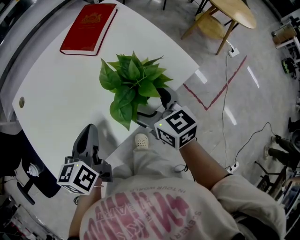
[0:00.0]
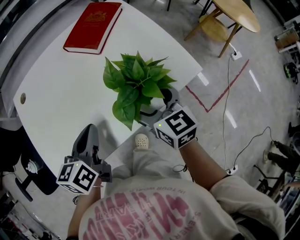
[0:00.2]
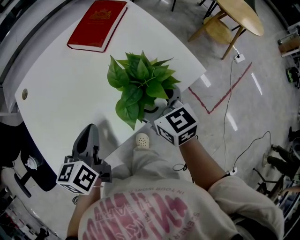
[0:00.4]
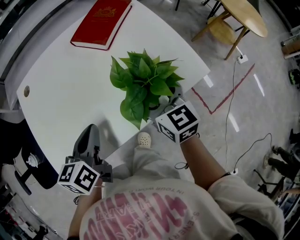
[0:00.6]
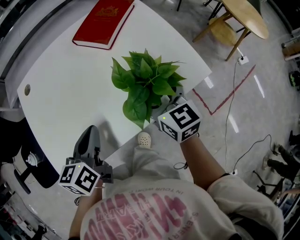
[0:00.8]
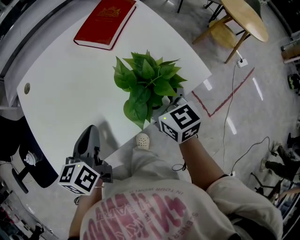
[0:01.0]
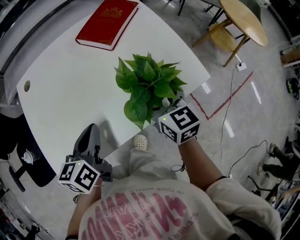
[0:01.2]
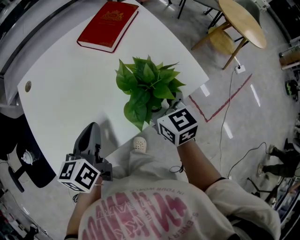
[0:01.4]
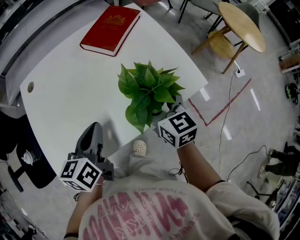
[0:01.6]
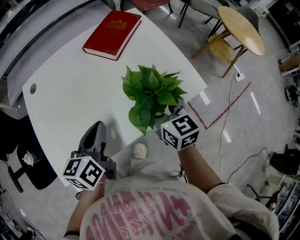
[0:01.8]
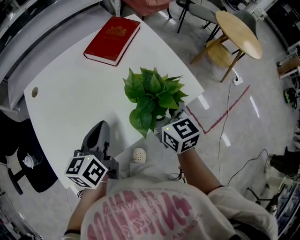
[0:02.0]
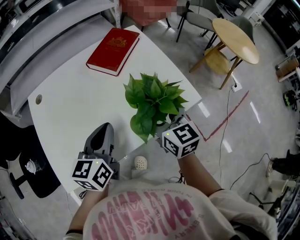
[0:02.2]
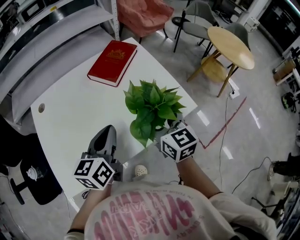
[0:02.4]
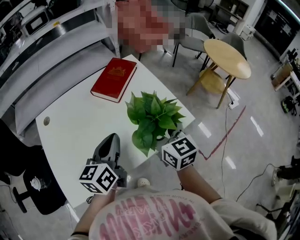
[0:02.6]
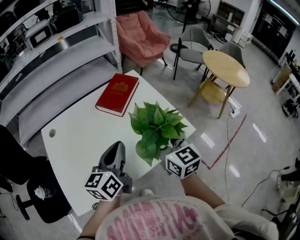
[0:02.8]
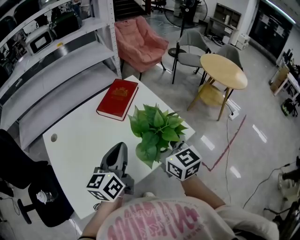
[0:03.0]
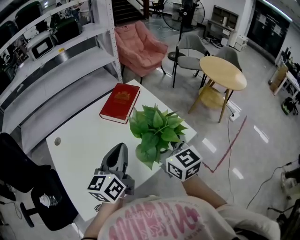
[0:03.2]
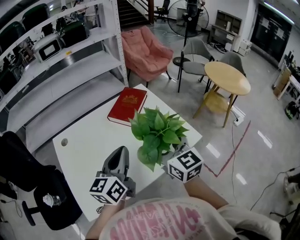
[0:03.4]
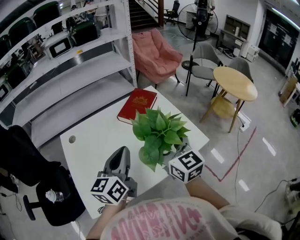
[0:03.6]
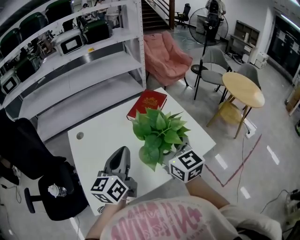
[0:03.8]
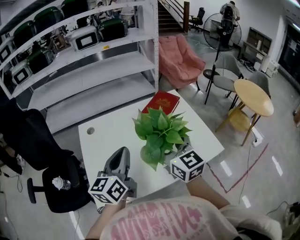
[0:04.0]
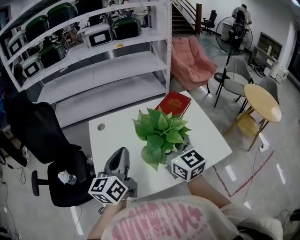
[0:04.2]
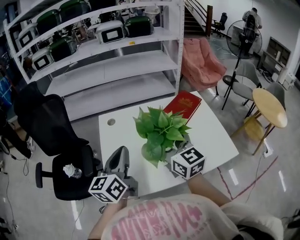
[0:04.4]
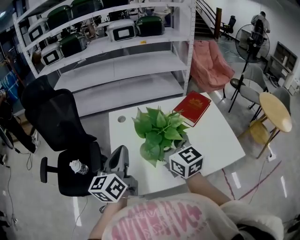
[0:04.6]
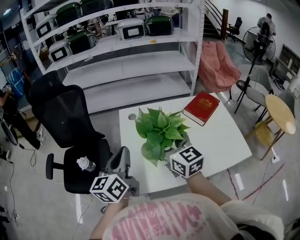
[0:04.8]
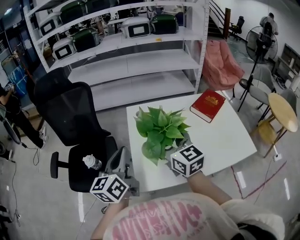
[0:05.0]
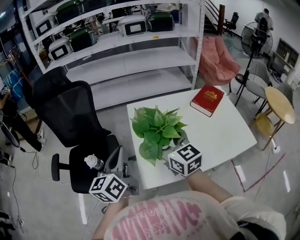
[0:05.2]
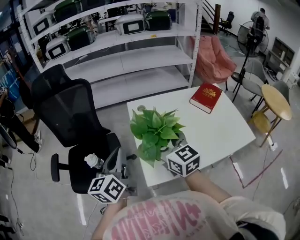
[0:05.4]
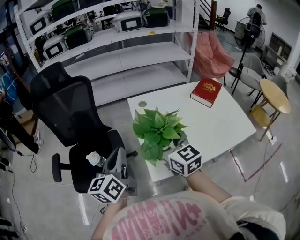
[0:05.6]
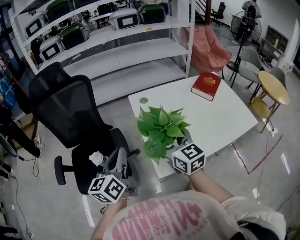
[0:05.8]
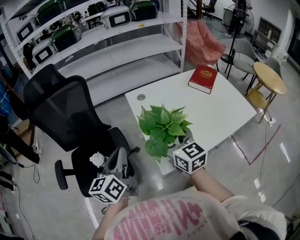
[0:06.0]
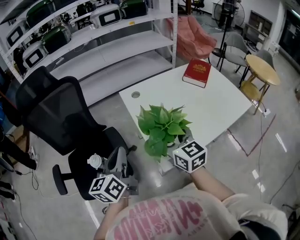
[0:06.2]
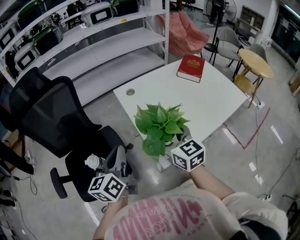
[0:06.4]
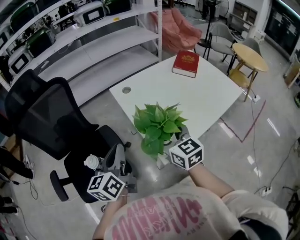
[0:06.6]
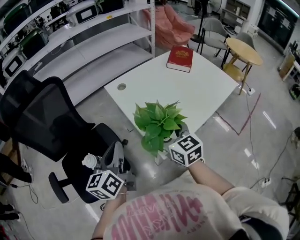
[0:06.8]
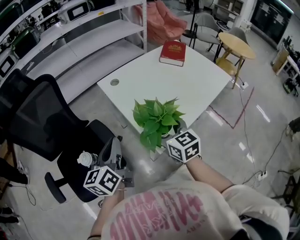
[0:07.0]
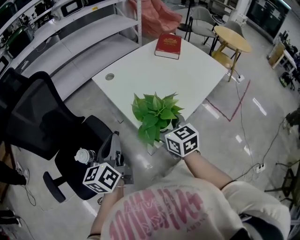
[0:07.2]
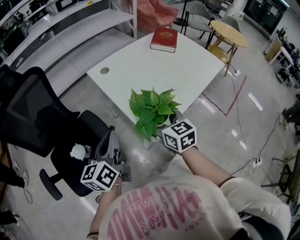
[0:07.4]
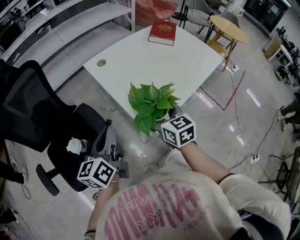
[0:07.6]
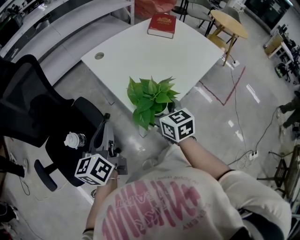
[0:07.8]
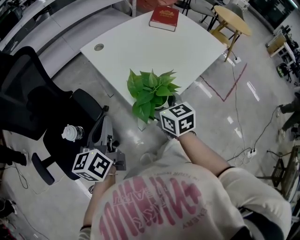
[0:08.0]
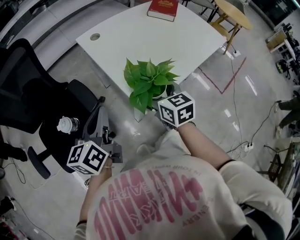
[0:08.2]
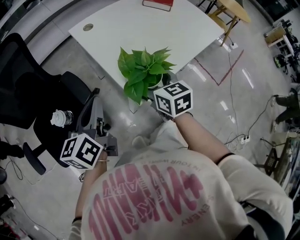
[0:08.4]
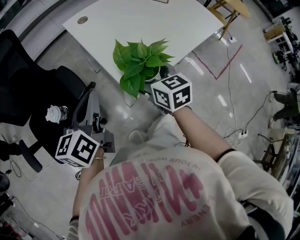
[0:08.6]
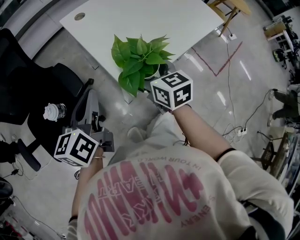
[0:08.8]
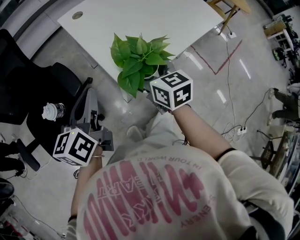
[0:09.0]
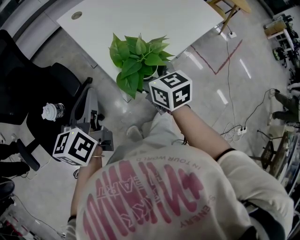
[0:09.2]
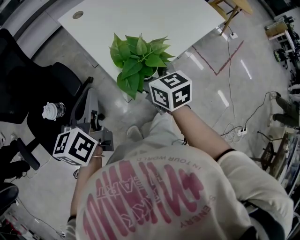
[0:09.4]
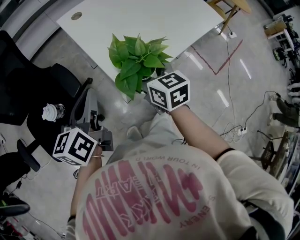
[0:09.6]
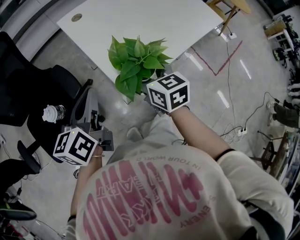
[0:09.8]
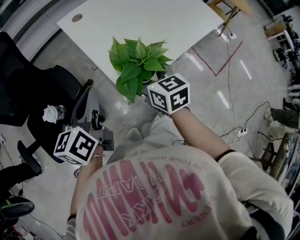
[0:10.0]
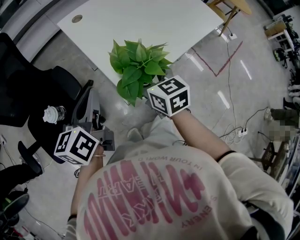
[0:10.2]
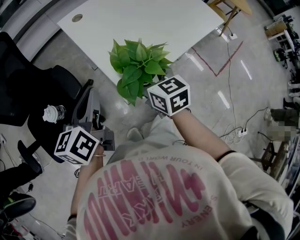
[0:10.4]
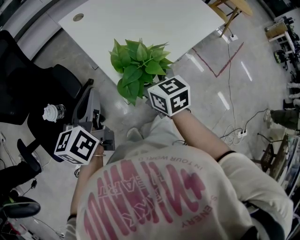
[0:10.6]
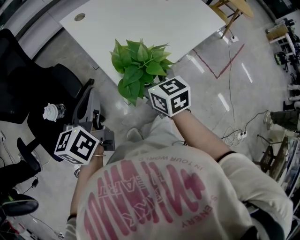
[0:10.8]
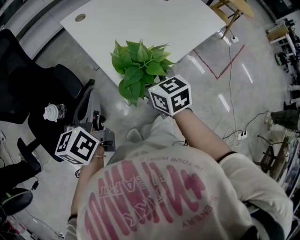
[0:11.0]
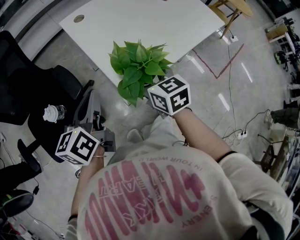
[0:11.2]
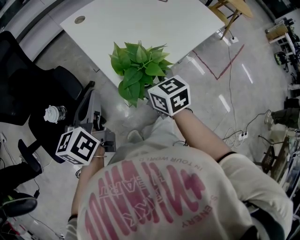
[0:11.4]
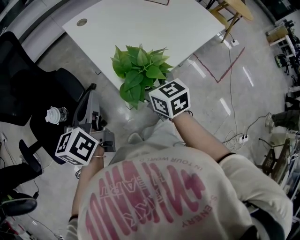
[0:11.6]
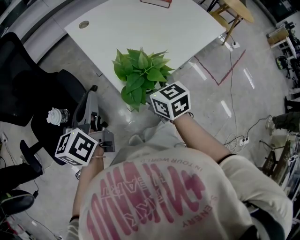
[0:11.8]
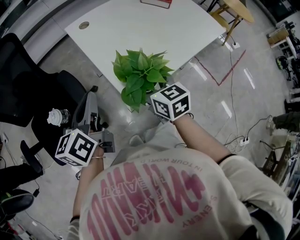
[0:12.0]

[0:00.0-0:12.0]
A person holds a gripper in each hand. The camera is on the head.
0:00.0 to 0:01.6: The grippers move only a little.
0:01.6 to 0:03.0: The right gripper heads upward, covering approximately 10 cm; the left gripper is displaced upward and to the right by roughly 10 cm, and rotates about 20 degrees.
0:03.0 to 0:04.4: The left gripper changes place by approximately 25 cm, and turns by about 30 degrees, while the right gripper ends up approximately 25 cm from where it was, and swivels roughly 20 degrees.
0:04.4 to 0:06.0: The two grippers go some 30 cm to the left.
0:06.0 to 0:07.6: The left gripper is displaced downward by some 5 cm, and turns by approximately 20 degrees; the right gripper heads downward and backward, covering roughly 10 cm, and rotates some 20 degrees.
0:07.6 to 0:12.0: The grippers stay close to where they were, moving slightly.

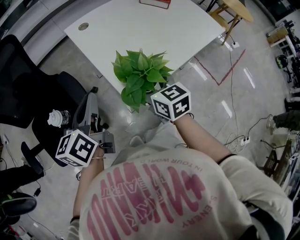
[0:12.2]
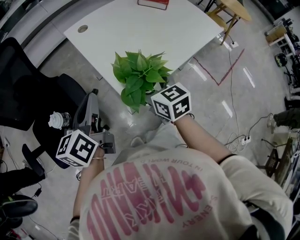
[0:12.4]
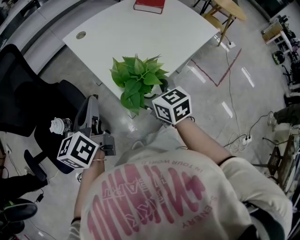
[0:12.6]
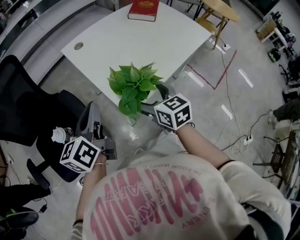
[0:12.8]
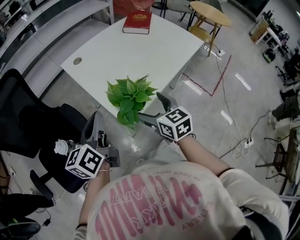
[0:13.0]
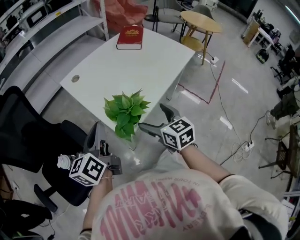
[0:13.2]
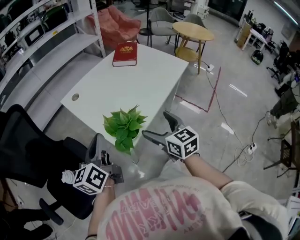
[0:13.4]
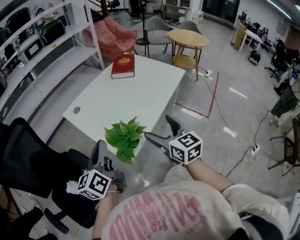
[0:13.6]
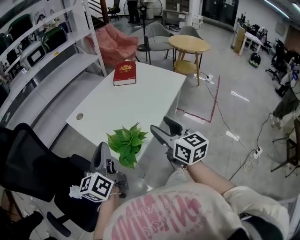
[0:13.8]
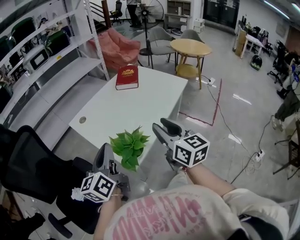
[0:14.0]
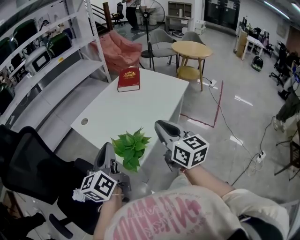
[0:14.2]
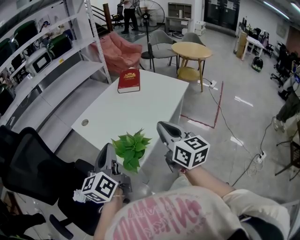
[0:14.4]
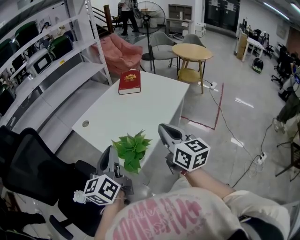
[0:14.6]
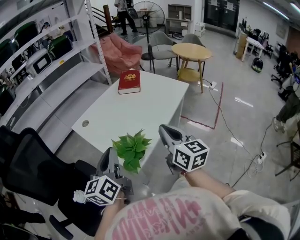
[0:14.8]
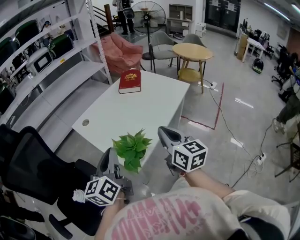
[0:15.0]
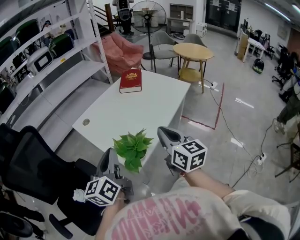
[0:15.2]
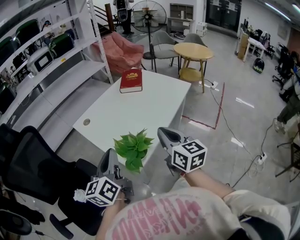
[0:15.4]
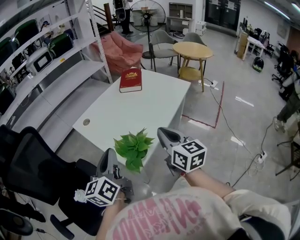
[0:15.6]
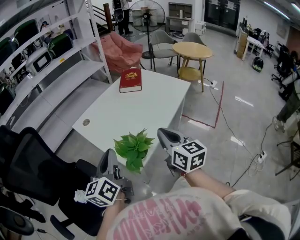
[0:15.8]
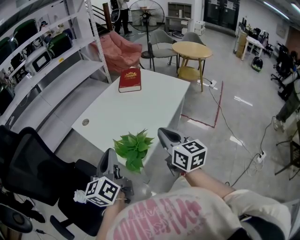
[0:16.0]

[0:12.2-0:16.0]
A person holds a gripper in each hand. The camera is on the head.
0:12.2 to 0:13.4: The left gripper goes some 10 cm to the right and upward. Meanwhile the right gripper travels to the right and upward by roughly 15 cm.
0:13.4 to 0:14.8: The right gripper is displaced upward by some 10 cm, swivels approximately 20 degrees, and closes its fingers. Meanwhile the left gripper shifts some 5 cm upward.
0:14.8 to 0:16.0: The grippers stay close to where they were, moving slightly.

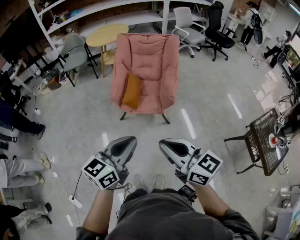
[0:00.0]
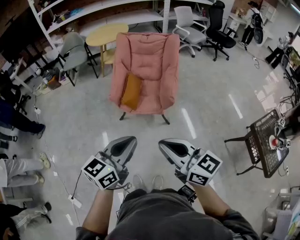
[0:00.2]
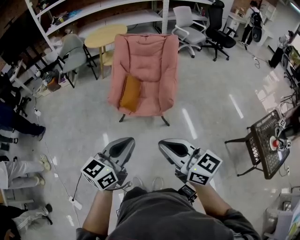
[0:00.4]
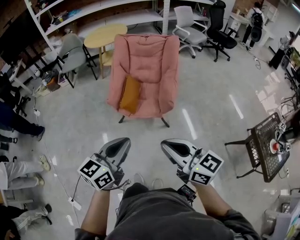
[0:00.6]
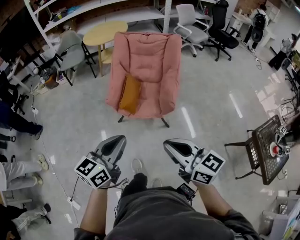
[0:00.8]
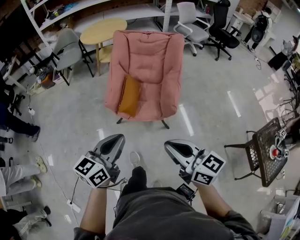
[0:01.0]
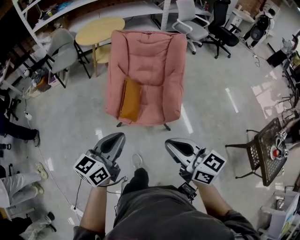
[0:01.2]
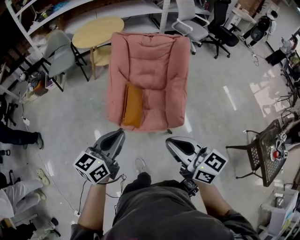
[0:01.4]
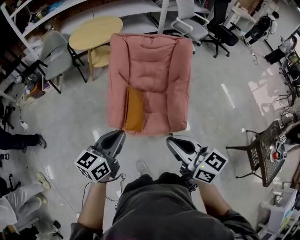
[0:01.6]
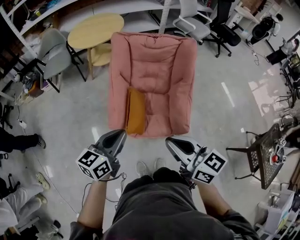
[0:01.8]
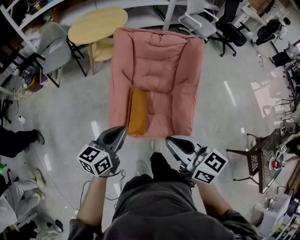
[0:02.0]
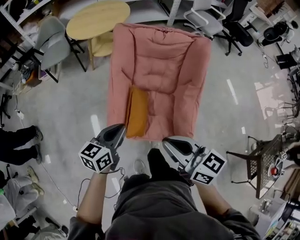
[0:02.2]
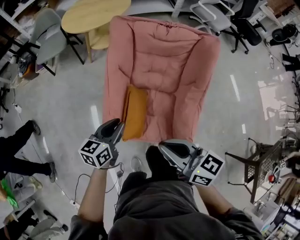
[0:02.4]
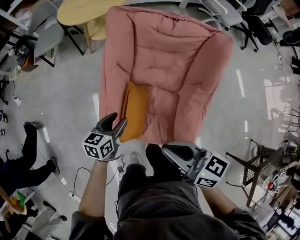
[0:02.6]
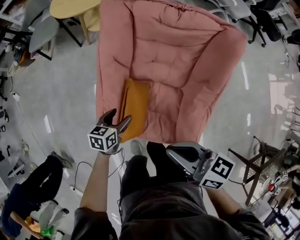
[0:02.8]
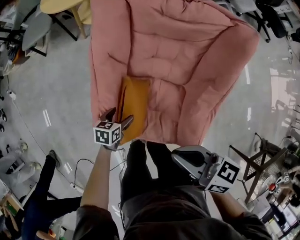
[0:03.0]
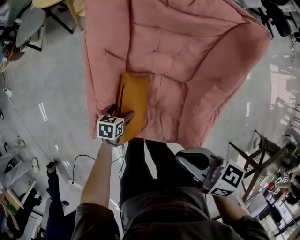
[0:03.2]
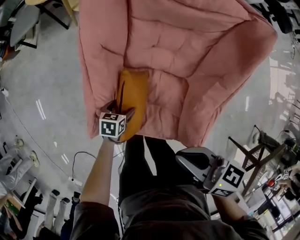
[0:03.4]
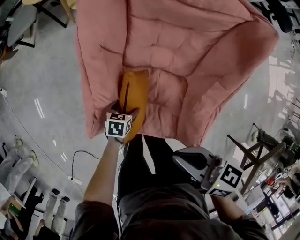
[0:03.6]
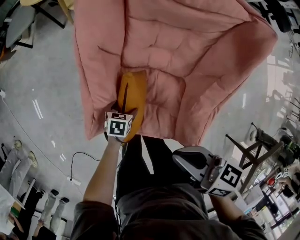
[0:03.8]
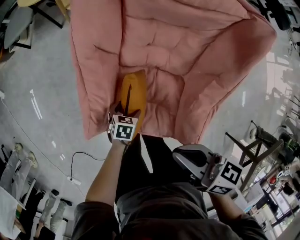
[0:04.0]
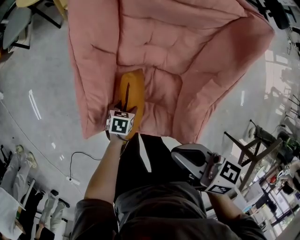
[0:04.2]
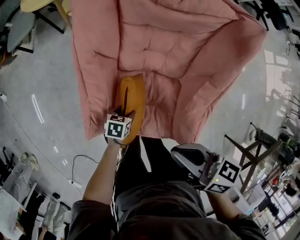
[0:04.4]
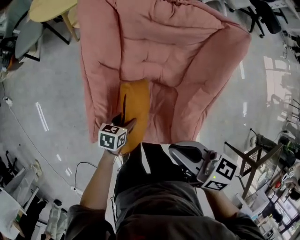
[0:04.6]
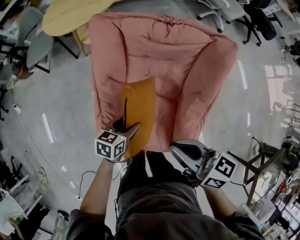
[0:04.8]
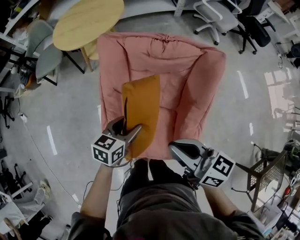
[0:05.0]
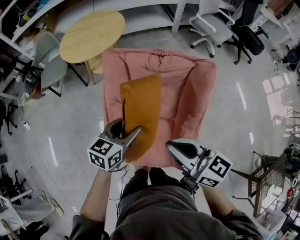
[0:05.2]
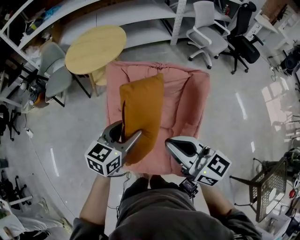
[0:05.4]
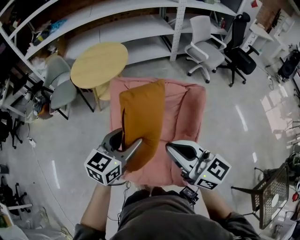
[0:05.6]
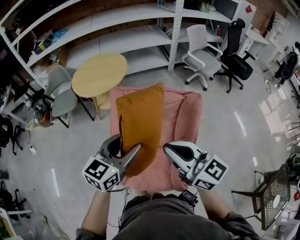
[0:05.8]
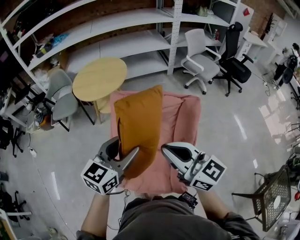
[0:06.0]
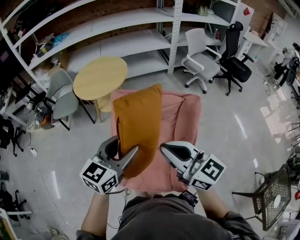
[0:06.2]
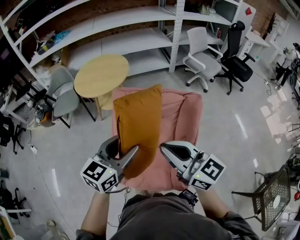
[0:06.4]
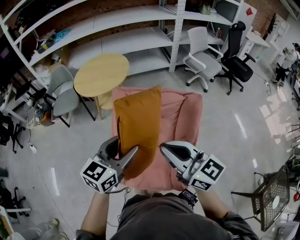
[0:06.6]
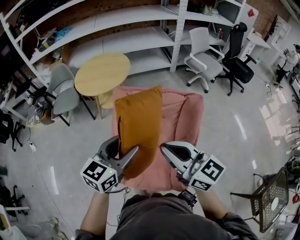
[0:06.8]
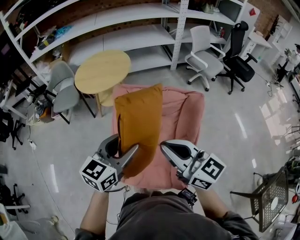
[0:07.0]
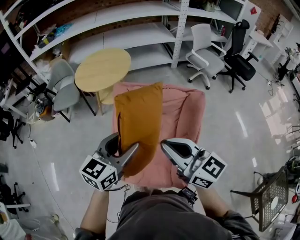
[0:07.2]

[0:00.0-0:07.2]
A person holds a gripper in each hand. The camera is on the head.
0:00.0 to 0:01.4: Both grippers move forward, approximately 30 cm.
0:01.4 to 0:02.8: The left gripper goes about 50 cm downward and forward, angles its fingers downward, by roughly 30 degrees, and opens its fingers. Meanwhile the right gripper moves forward and downward, about 35 cm, and changes its angle by about 30 degrees.
0:02.8 to 0:04.4: The left gripper travels downward by about 15 cm, and turns by about 20 degrees; the right gripper heads downward, covering about 5 cm.
0:04.4 to 0:05.8: The right gripper is displaced upward by about 30 cm, and changes its angle by about 50 degrees, while the left gripper heads upward, covering about 60 cm, and tips its fingers upward by roughly 50 degrees.
0:05.8 to 0:07.2: The grippers make only small movements.
